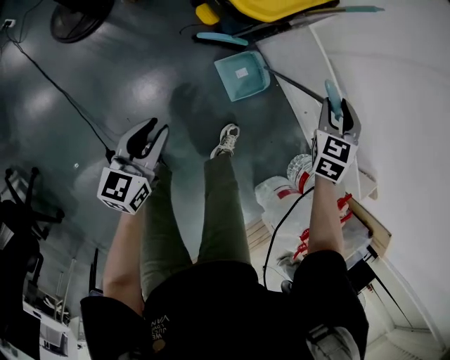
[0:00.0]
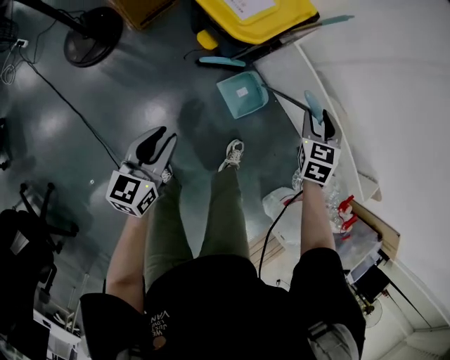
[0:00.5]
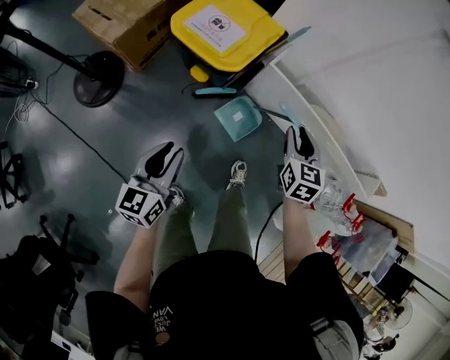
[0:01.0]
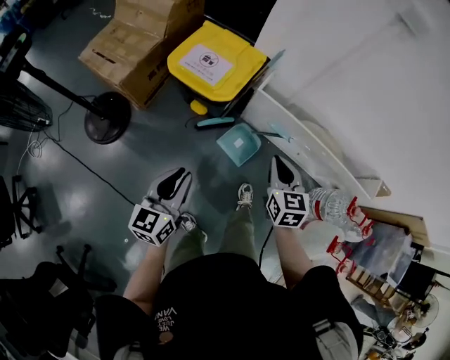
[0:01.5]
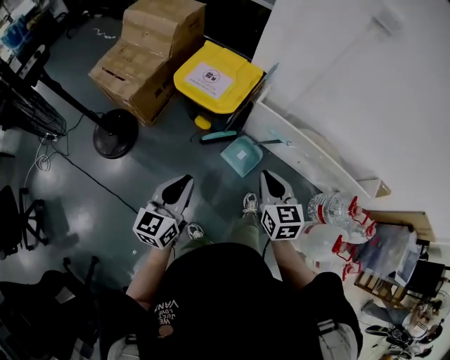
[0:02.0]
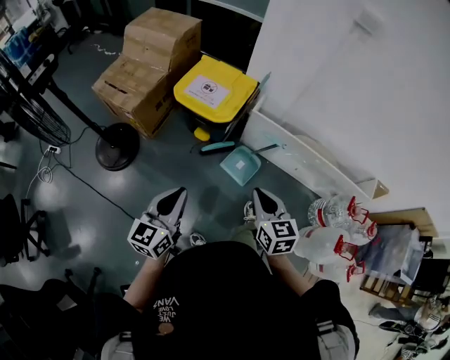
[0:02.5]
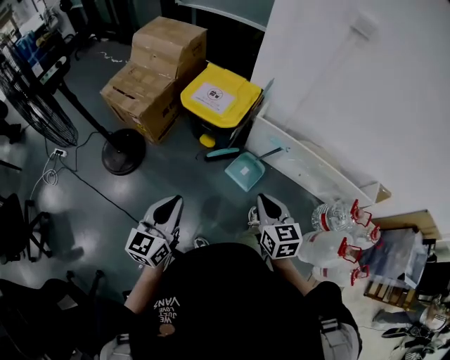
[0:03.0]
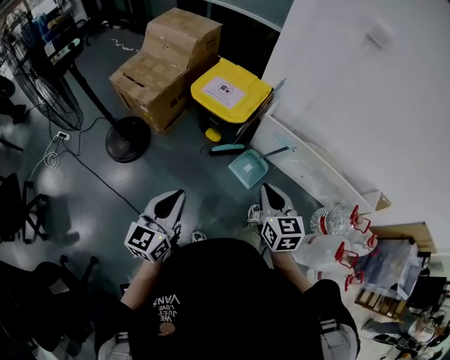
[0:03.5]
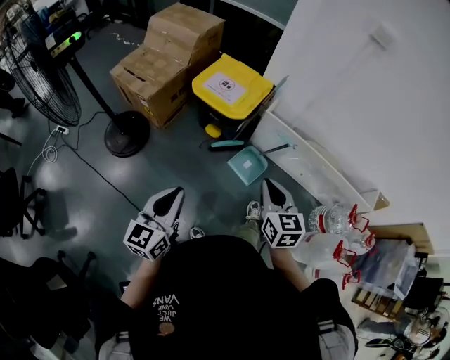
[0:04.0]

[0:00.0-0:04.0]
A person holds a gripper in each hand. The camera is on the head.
0:00.0 to 0:02.0: The right gripper travels backward, upward and to the left by about 30 cm, changes its angle by approximately 40 degrees, and closes; the left gripper travels upward by some 25 cm, and changes its angle by roughly 20 degrees.
0:02.0 to 0:04.0: The right gripper heads backward, covering some 10 cm; the left gripper is displaced backward and to the left by roughly 10 cm.

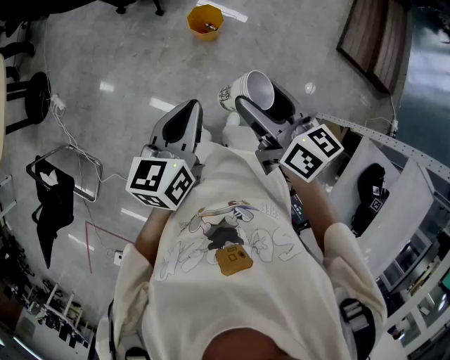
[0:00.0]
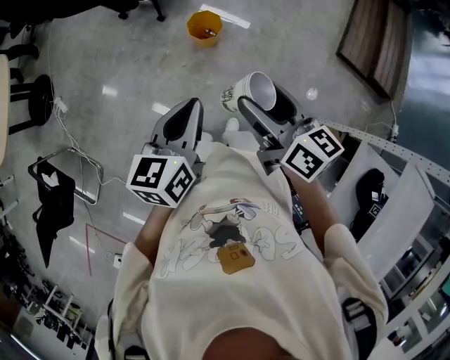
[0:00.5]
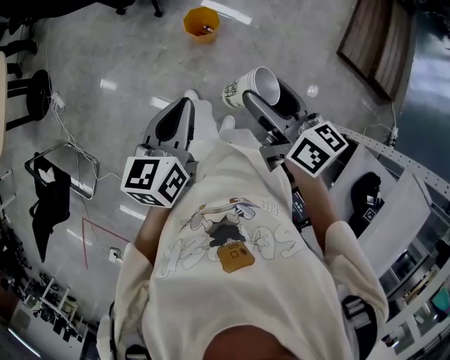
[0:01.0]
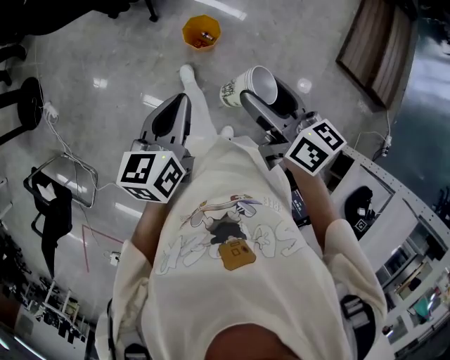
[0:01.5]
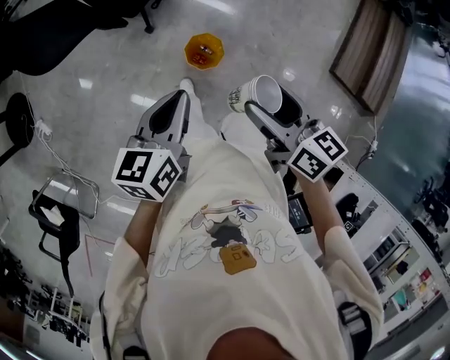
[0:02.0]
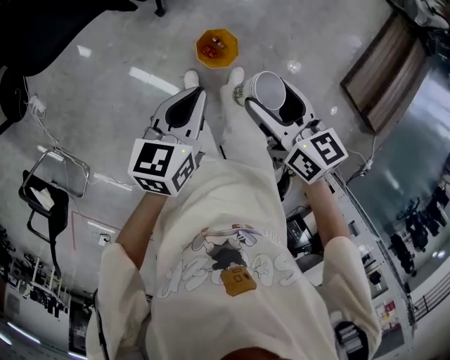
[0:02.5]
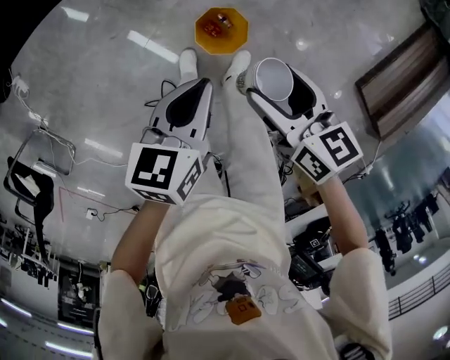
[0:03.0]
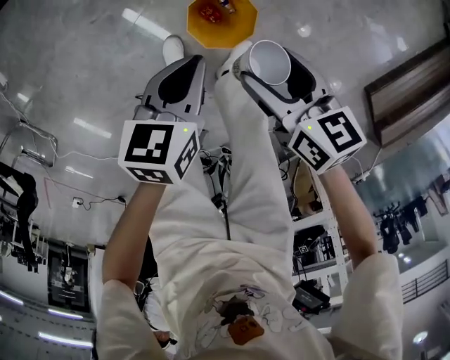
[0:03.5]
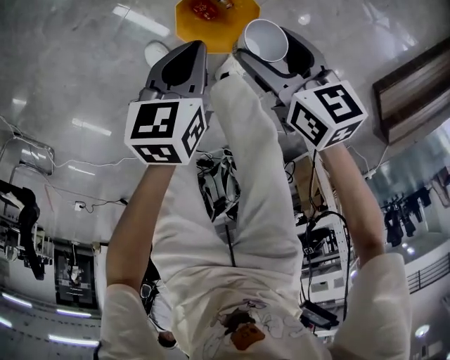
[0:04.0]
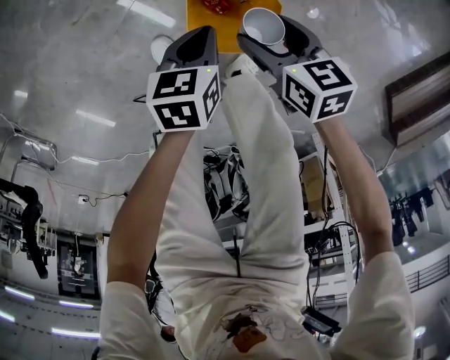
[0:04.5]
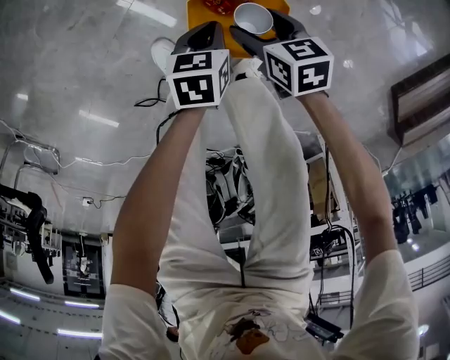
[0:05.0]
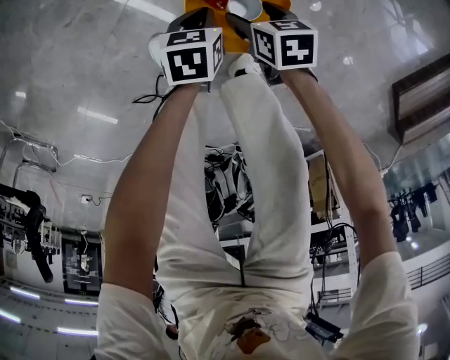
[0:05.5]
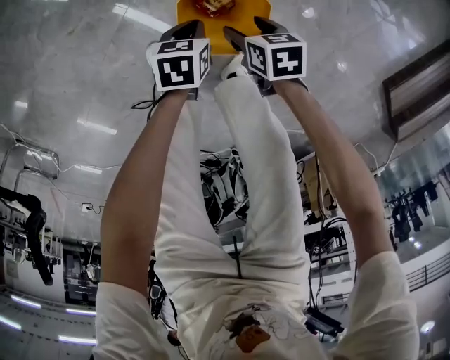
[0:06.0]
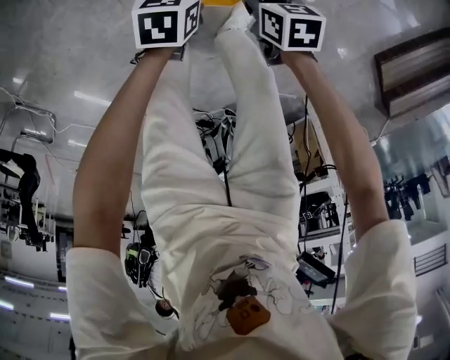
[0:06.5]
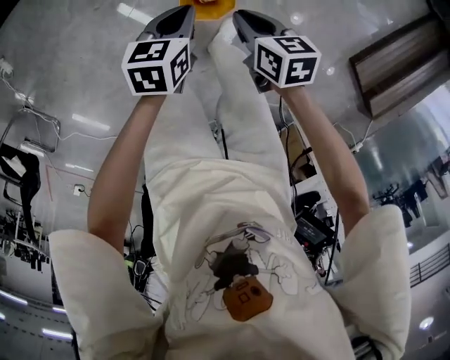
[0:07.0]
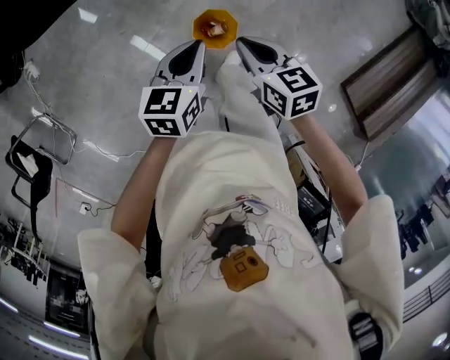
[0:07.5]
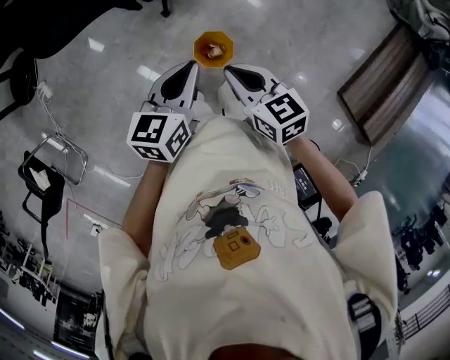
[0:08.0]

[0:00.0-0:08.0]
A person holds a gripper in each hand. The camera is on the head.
0:00.0 to 0:02.0: The two grippers go some 40 cm forward.
0:02.0 to 0:04.0: Both grippers move downward, about 60 cm. The right gripper swivels roughly 30 degrees. Meanwhile the left gripper rotates some 30 degrees.
0:04.0 to 0:06.0: Both grippers travel together downward, some 20 cm. The right gripper rotates some 20 degrees.
0:06.0 to 0:08.0: The grippers both shift upward by some 70 cm. The left gripper points its fingers approximately 40 degrees further upward, while the right gripper angles its fingers upward, by some 30 degrees, and closes up.

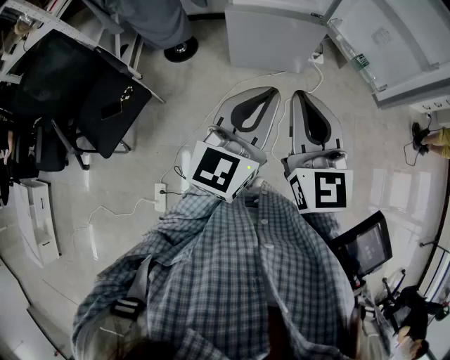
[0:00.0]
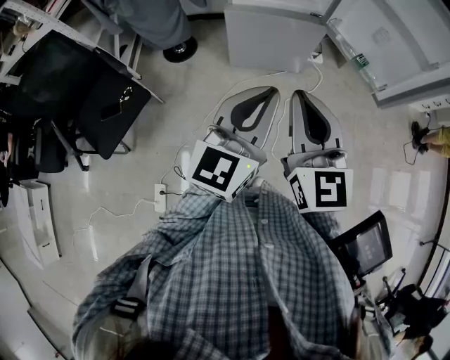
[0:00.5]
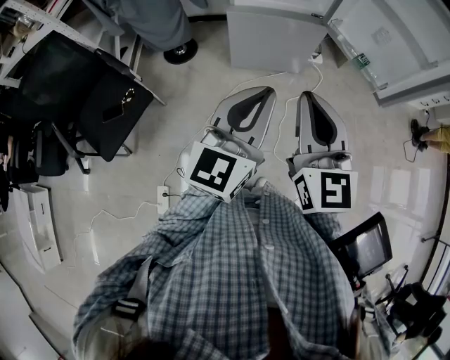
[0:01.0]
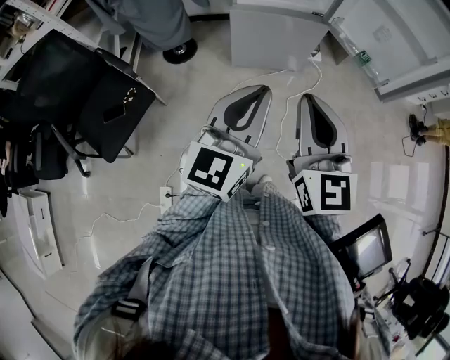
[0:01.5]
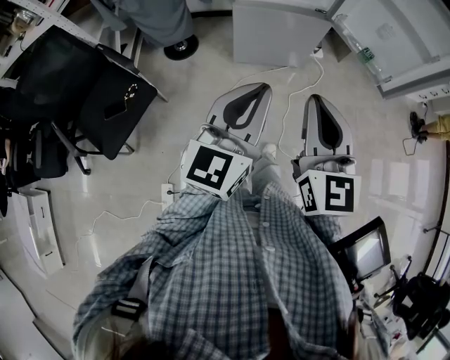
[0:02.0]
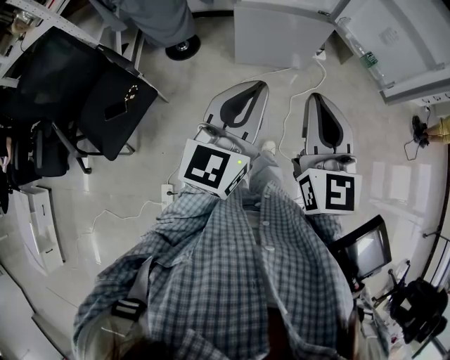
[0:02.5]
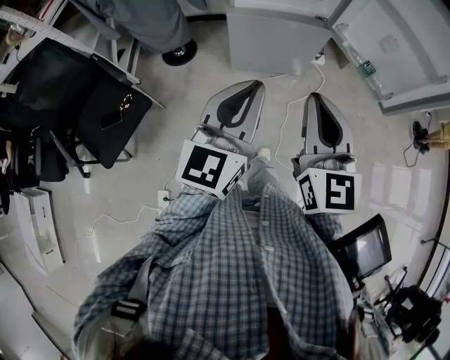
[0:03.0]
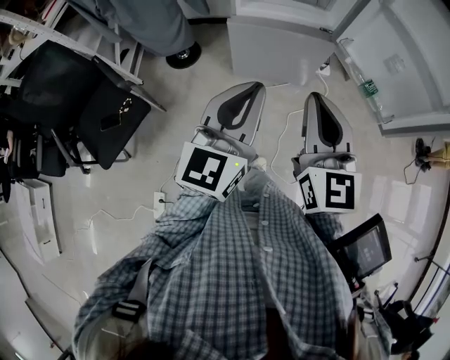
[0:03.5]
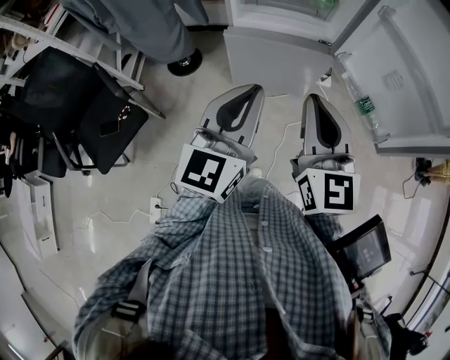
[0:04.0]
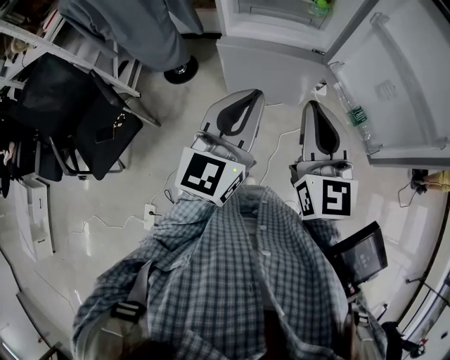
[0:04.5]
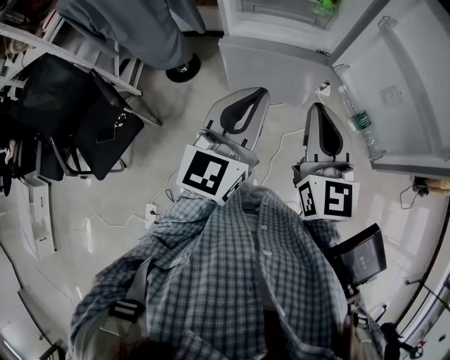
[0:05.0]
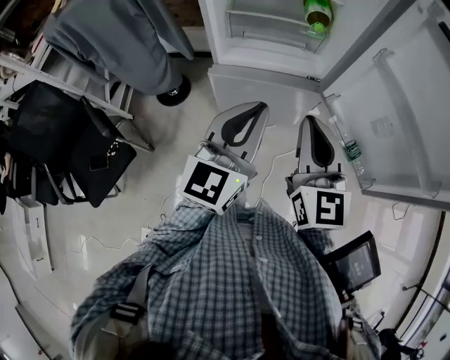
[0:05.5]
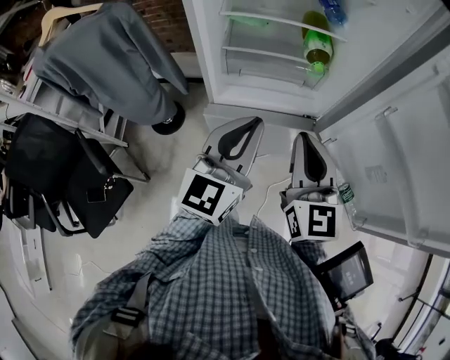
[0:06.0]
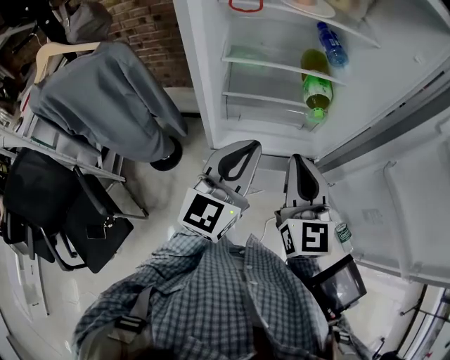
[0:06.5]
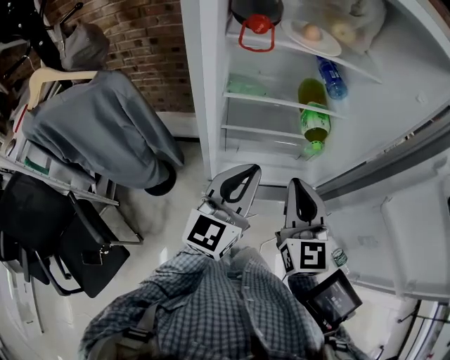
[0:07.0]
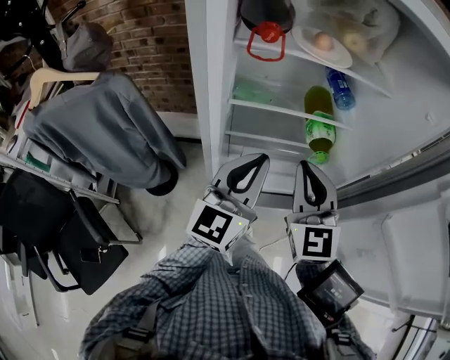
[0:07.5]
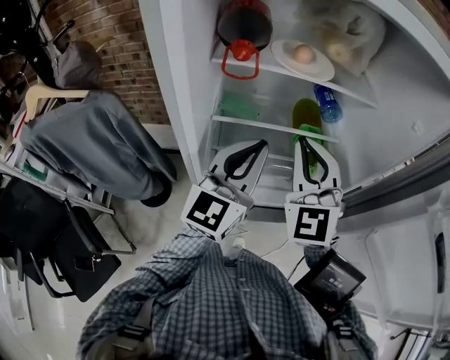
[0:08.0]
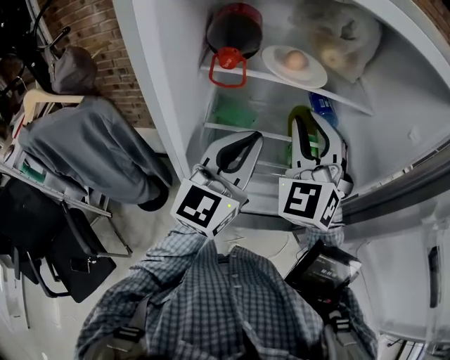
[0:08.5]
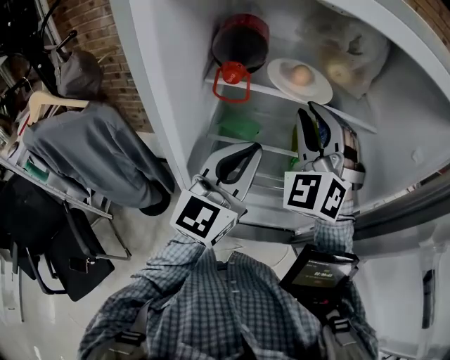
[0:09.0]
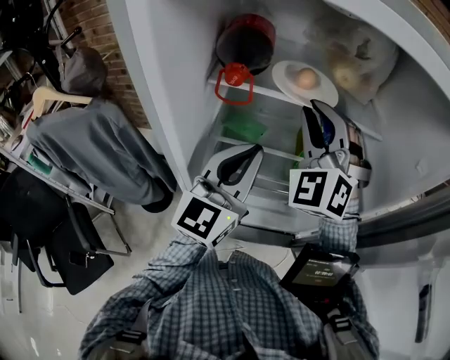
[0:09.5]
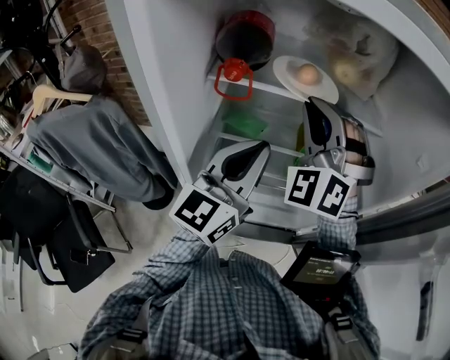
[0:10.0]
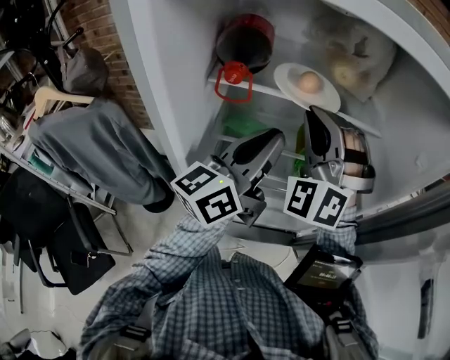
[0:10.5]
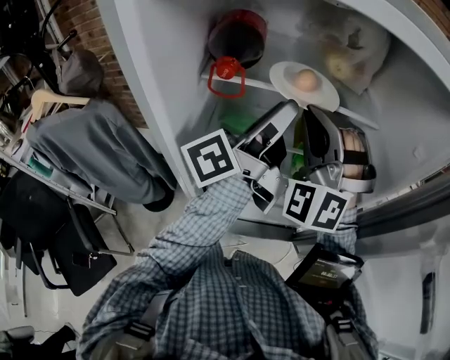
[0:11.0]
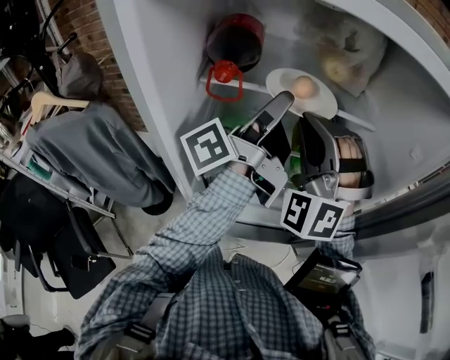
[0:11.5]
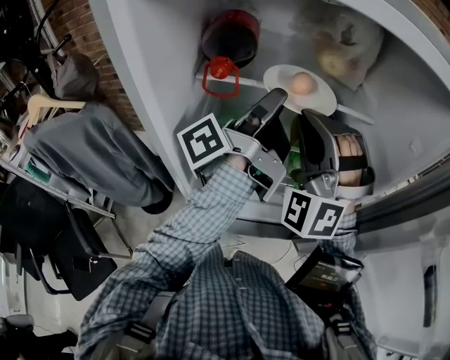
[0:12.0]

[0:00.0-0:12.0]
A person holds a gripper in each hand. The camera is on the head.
0:00.0 to 0:02.0: The right gripper changes place by some 5 cm, while the left gripper shifts roughly 10 cm to the left.
0:02.0 to 0:04.0: The two grippers go about 20 cm forward.
0:04.0 to 0:06.0: Both grippers travel together forward, approximately 25 cm.
0:06.0 to 0:08.0: The right gripper shifts approximately 30 cm forward and upward, and swivels about 40 degrees. Meanwhile the left gripper is displaced forward by roughly 25 cm.
0:08.0 to 0:10.0: The right gripper moves forward and upward, some 10 cm, and rotates some 30 degrees.
0:10.0 to 0:12.0: The left gripper moves forward and upward, about 10 cm, twists approximately 80 degrees counterclockwise, seen from behind, and opens its fingers.

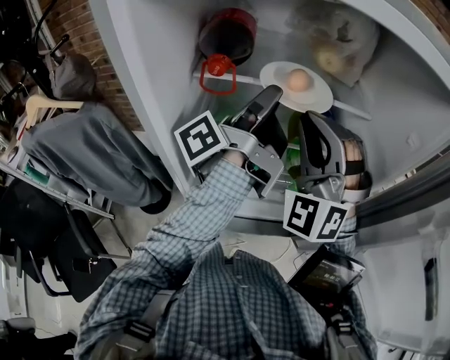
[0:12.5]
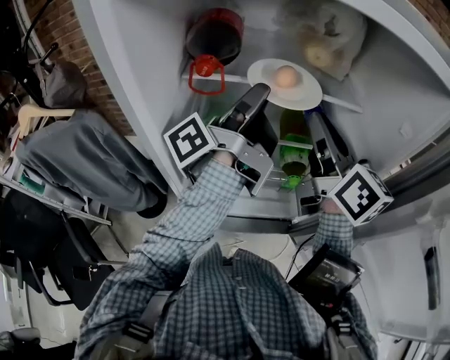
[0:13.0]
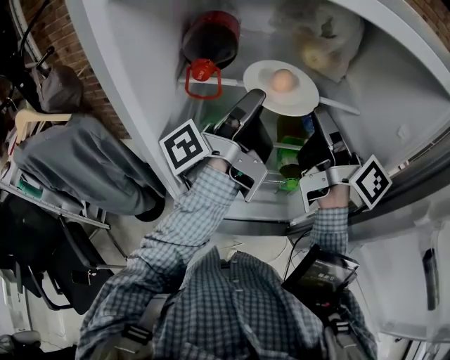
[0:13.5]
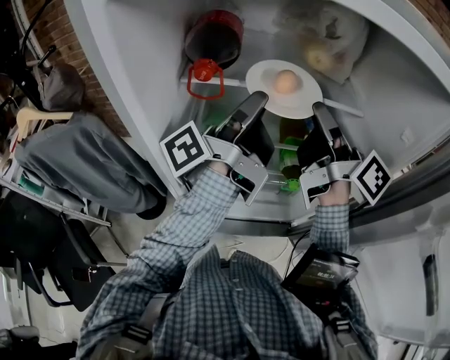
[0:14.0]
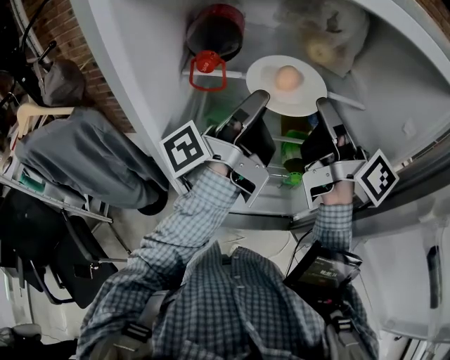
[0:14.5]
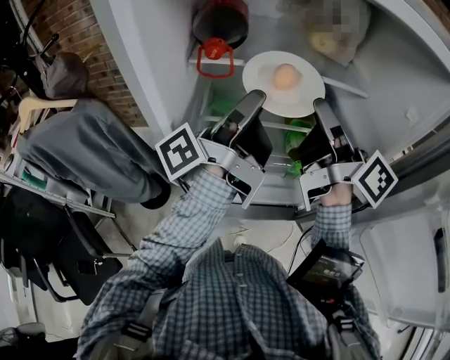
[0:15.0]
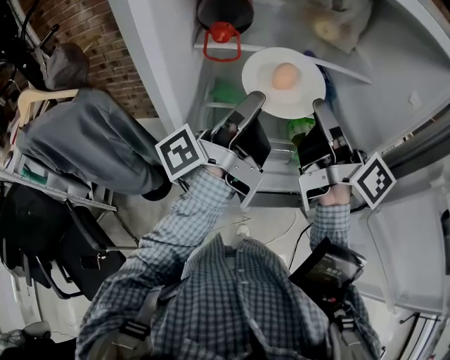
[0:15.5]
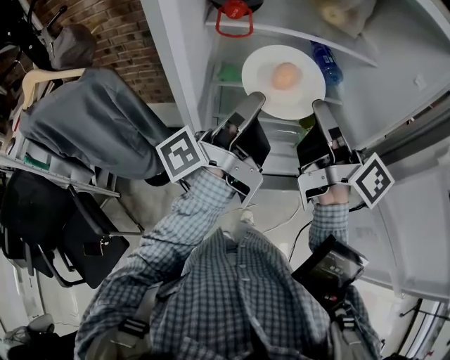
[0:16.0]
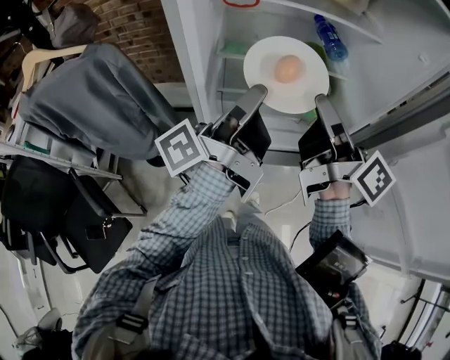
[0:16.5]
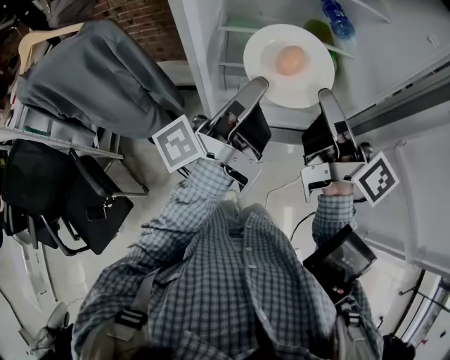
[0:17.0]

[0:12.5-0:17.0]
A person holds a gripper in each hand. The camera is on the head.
0:12.5 to 0:14.5: The right gripper moves to the right, some 5 cm, and rotates around the line of its fingers by about 130 degrees, clockwise from behind.
0:14.5 to 0:17.0: Both grippers travel together backward and downward, about 20 cm.
